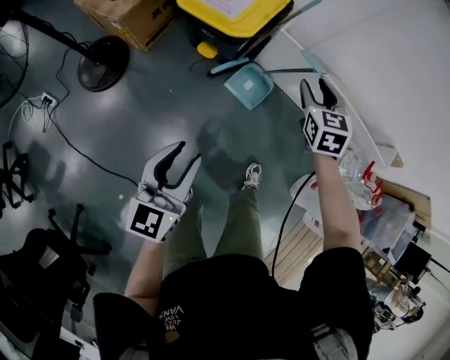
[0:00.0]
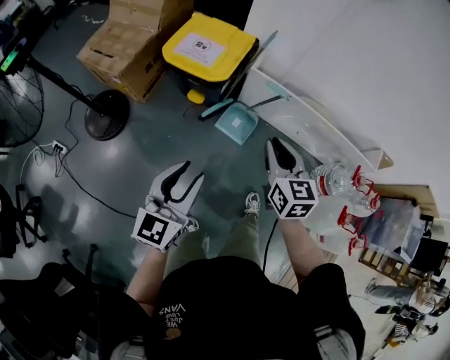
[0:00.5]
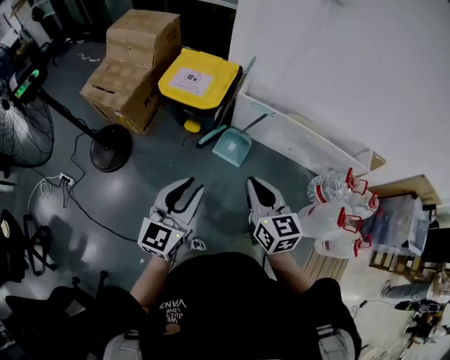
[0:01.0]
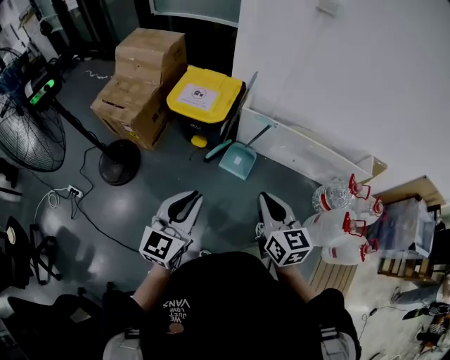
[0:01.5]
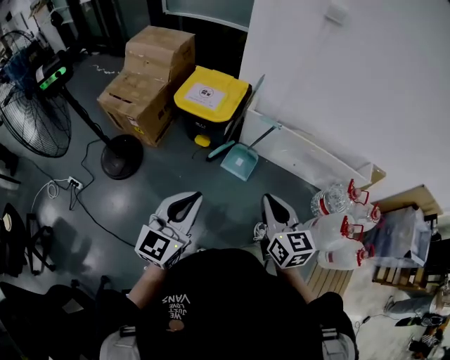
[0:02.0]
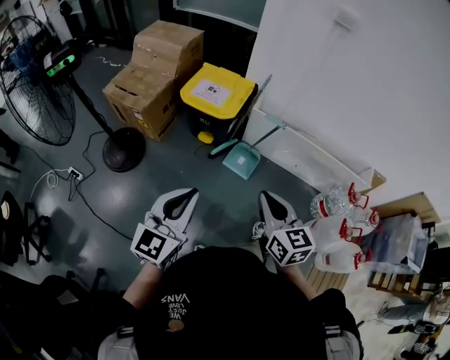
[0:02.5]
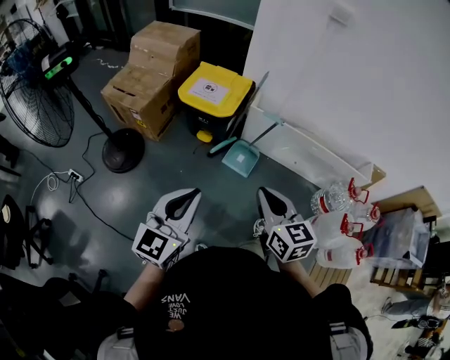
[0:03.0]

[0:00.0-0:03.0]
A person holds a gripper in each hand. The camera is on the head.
0:00.0 to 0:01.5: The left gripper goes some 15 cm upward, while the right gripper heads backward and upward, covering roughly 30 cm, changes its angle by some 30 degrees, and closes its fingers.
0:01.5 to 0:03.0: The right gripper ends up some 5 cm from where it was; the left gripper moves backward, about 5 cm.

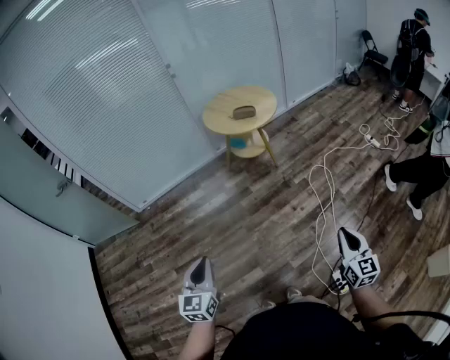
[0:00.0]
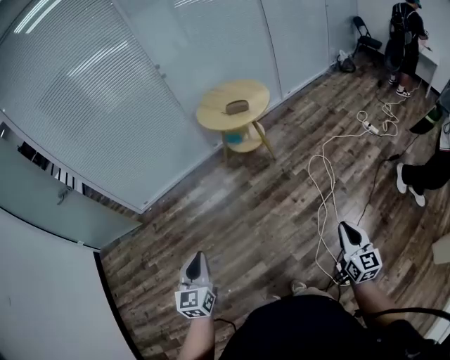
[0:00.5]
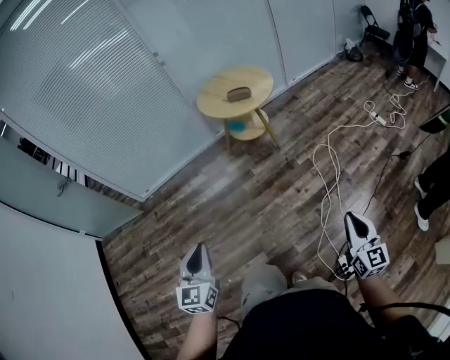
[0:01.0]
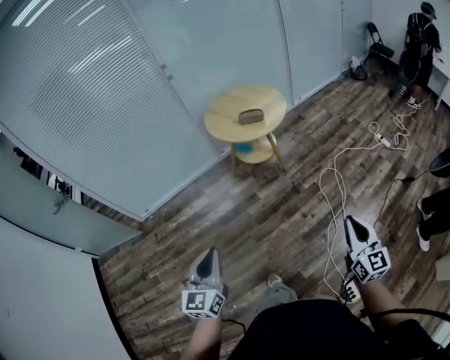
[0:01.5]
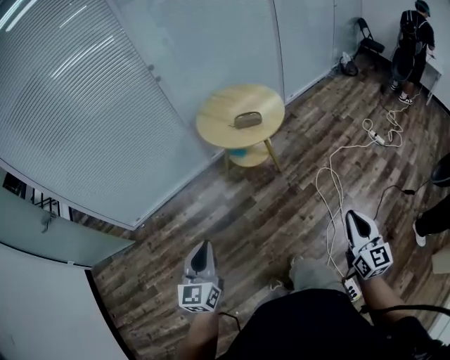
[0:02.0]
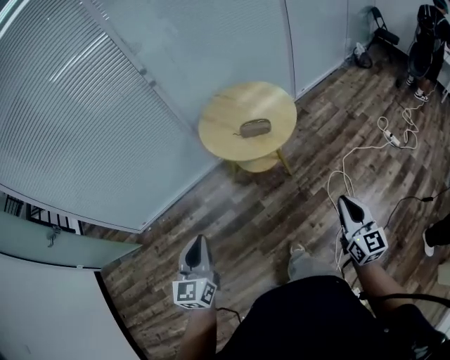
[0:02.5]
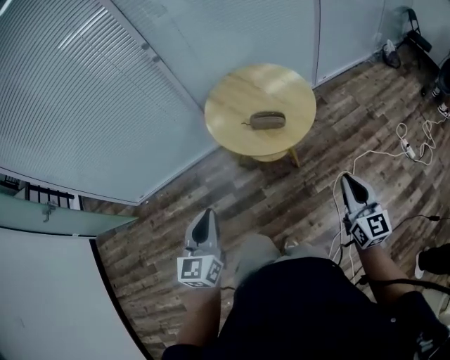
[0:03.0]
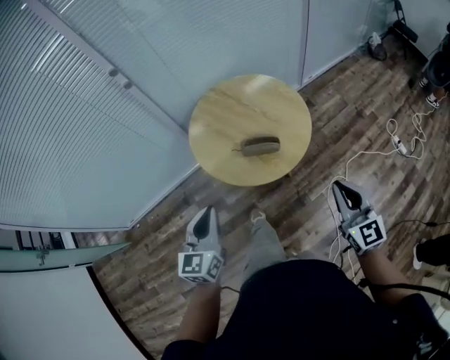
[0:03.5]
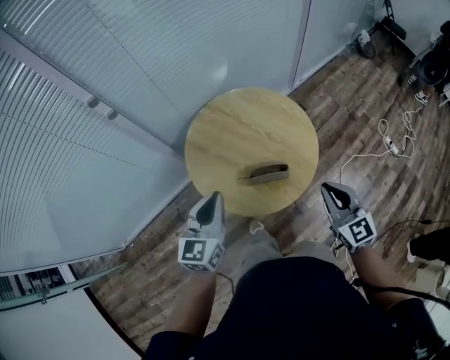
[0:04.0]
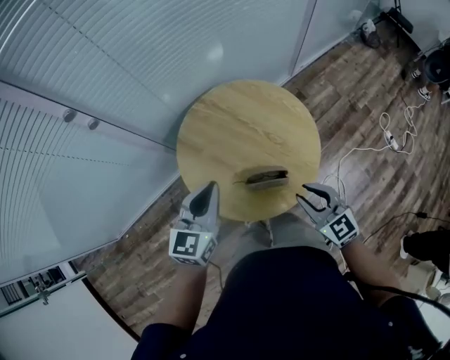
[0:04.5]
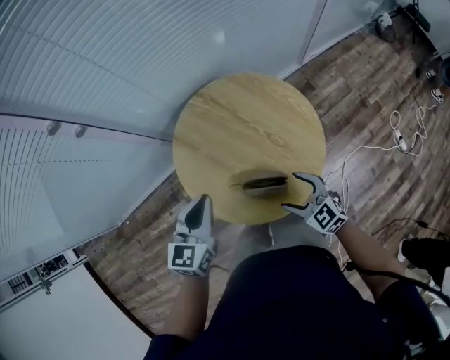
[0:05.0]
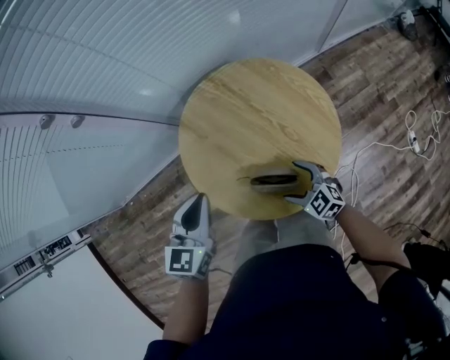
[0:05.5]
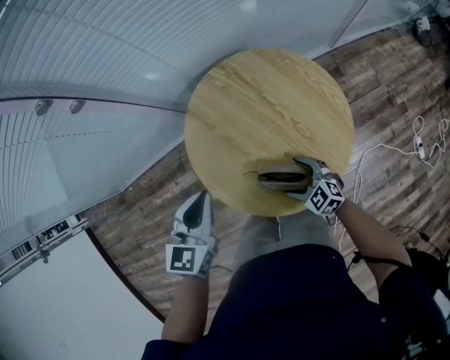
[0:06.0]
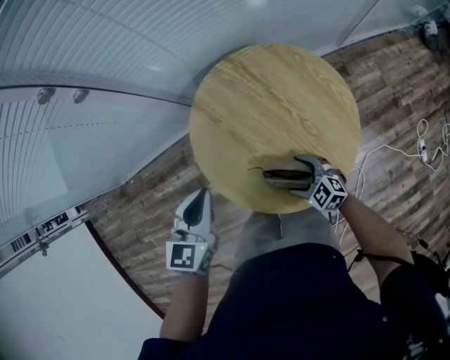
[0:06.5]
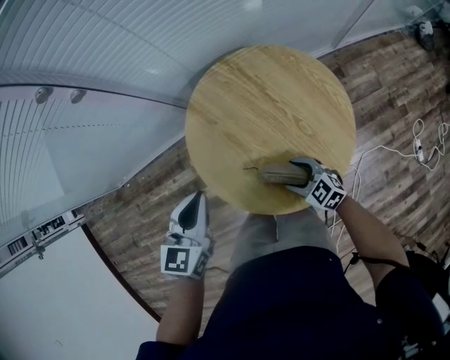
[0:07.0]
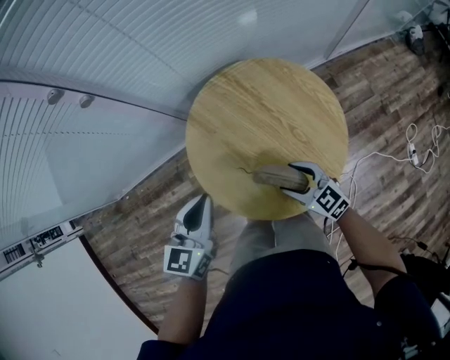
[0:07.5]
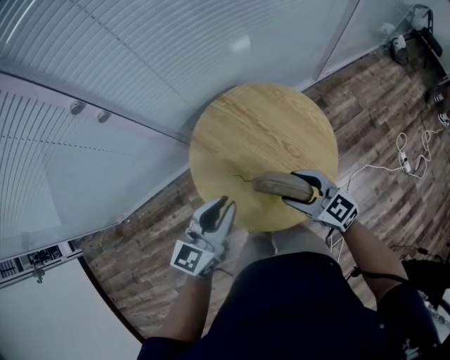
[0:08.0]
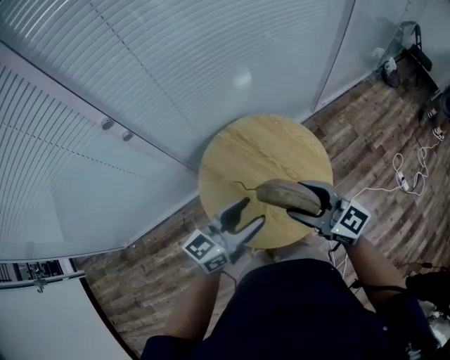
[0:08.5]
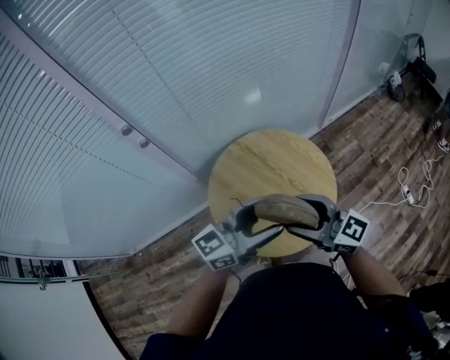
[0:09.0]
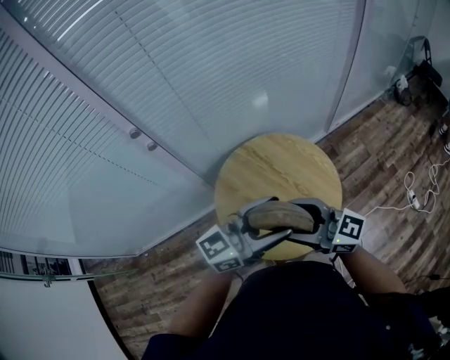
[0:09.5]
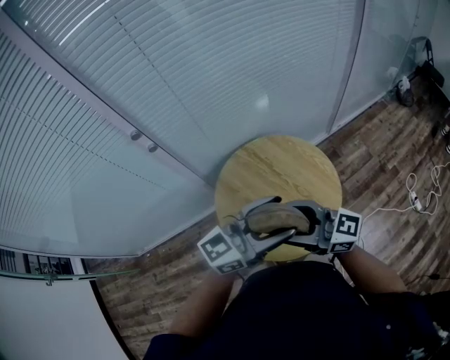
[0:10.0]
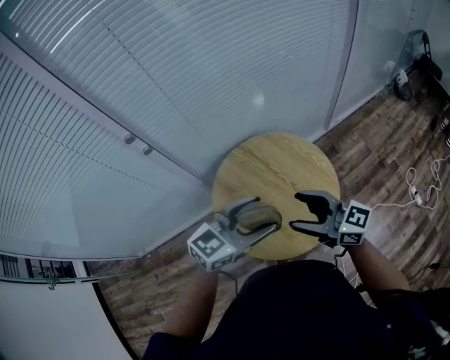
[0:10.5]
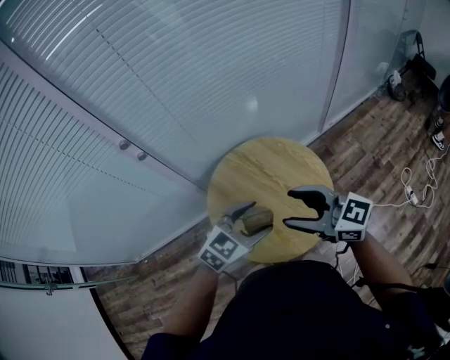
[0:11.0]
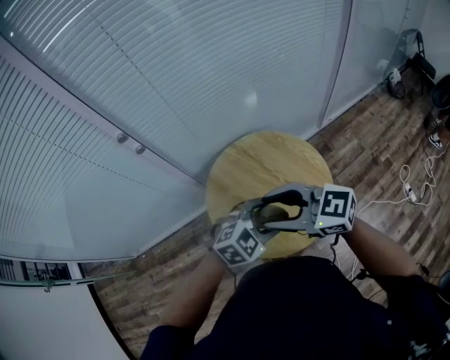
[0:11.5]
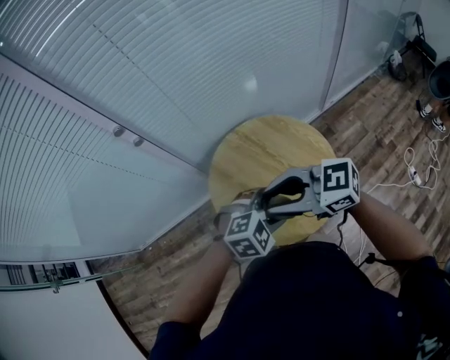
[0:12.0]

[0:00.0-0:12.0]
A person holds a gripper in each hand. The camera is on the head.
0:00.0 to 0:02.0: The grippers both shift forward by about 25 cm.
0:02.0 to 0:04.0: Both grippers are carried forward, some 60 cm. The right gripper changes its angle by about 20 degrees.
0:04.0 to 0:06.0: The left gripper ends up roughly 10 cm from where it was, and turns by some 20 degrees, while the right gripper shifts approximately 25 cm downward, changes its angle by roughly 50 degrees, and opens.
0:06.0 to 0:08.0: The right gripper goes some 20 cm upward, changes its angle by about 20 degrees, and closes its fingers. Meanwhile the left gripper moves about 5 cm, and turns by about 30 degrees.
0:08.0 to 0:10.0: The two grippers go about 15 cm upward. The right gripper angles its fingers upward, by roughly 40 degrees. Meanwhile the left gripper rotates roughly 30 degrees, and opens.
0:10.0 to 0:12.0: The right gripper turns by approximately 30 degrees; the left gripper heads downward, covering some 15 cm, and tilts its fingers approximately 60 degrees downward.

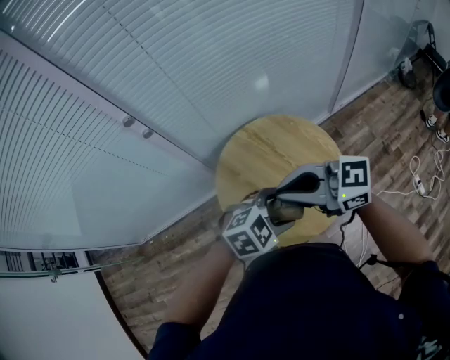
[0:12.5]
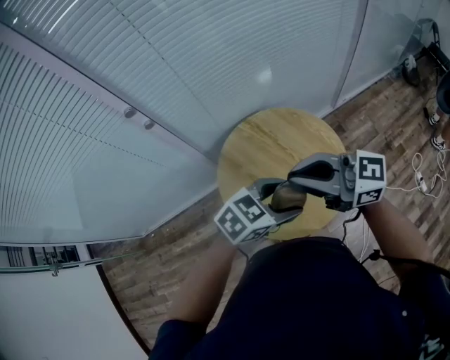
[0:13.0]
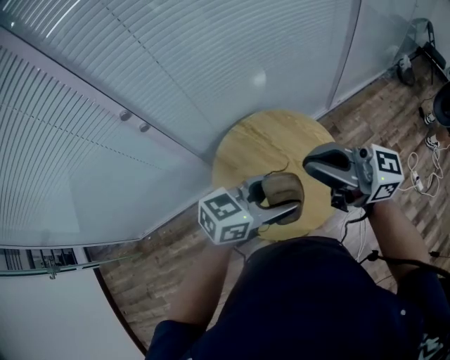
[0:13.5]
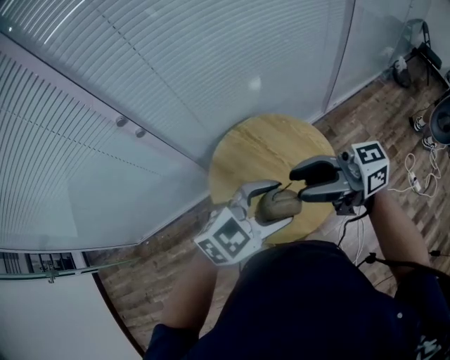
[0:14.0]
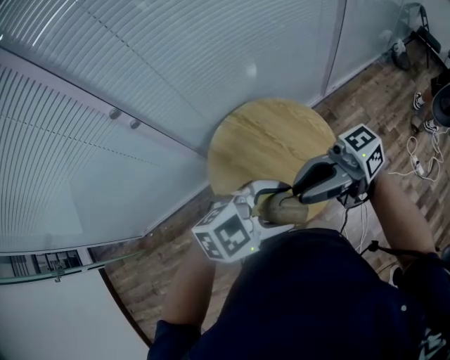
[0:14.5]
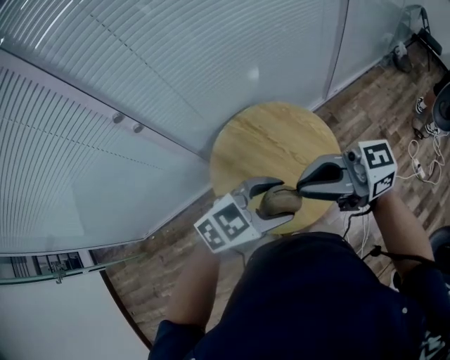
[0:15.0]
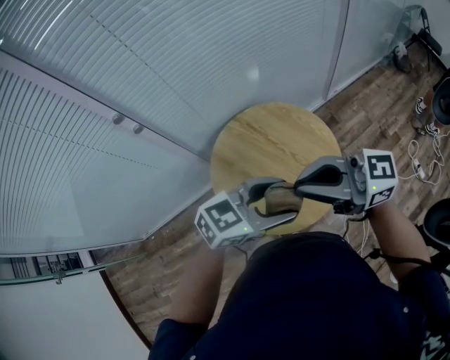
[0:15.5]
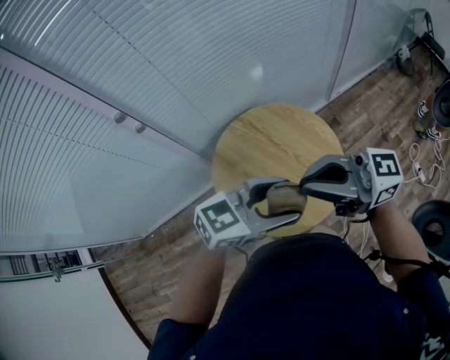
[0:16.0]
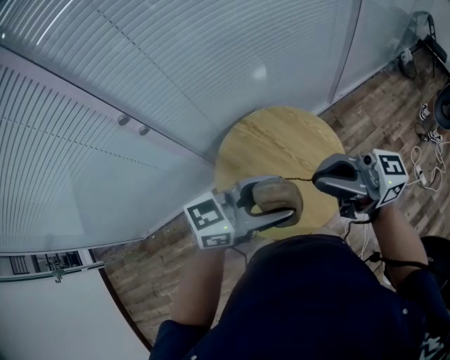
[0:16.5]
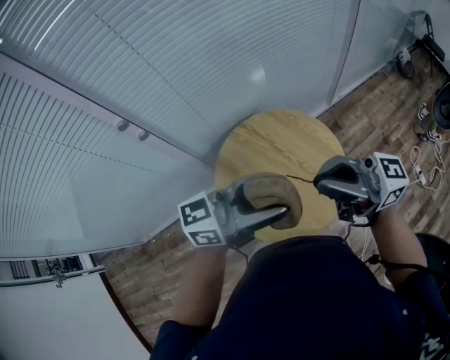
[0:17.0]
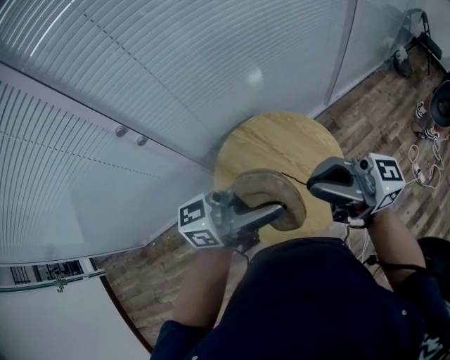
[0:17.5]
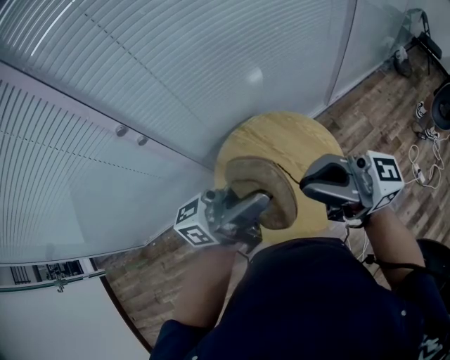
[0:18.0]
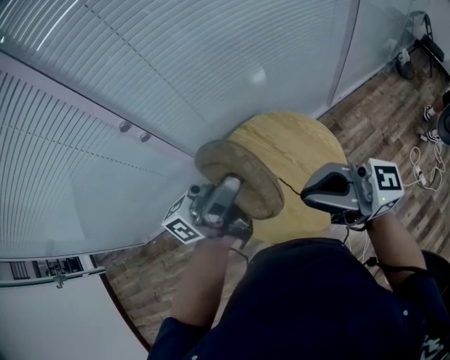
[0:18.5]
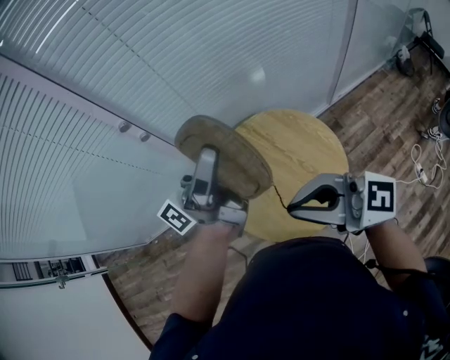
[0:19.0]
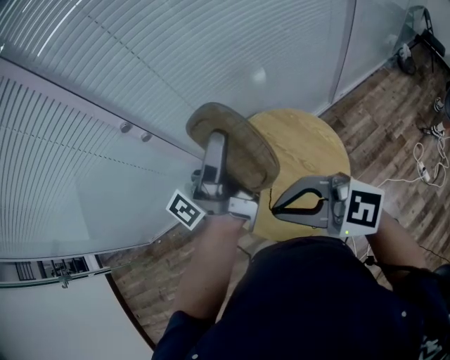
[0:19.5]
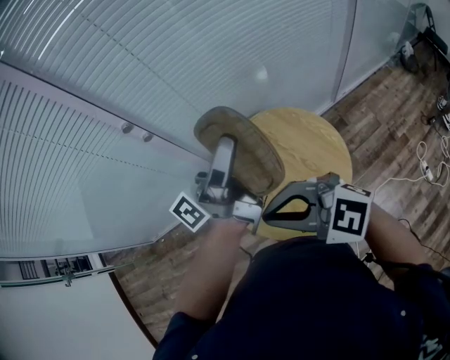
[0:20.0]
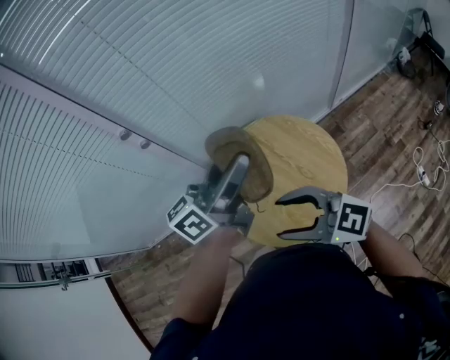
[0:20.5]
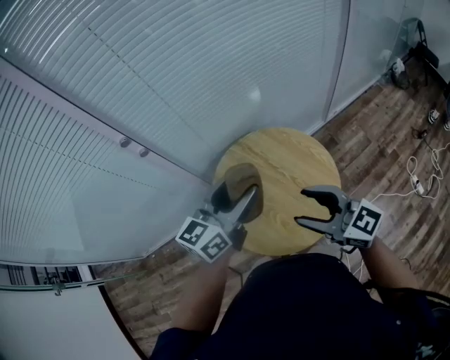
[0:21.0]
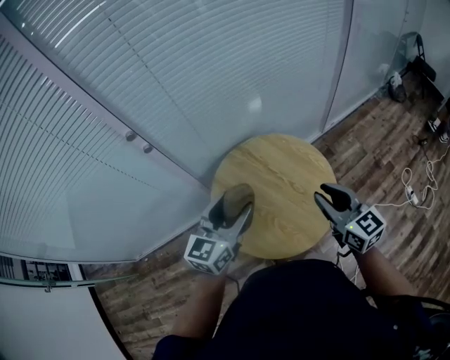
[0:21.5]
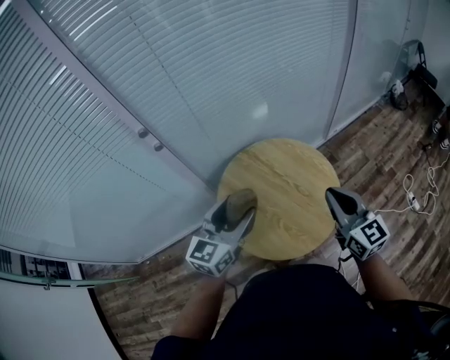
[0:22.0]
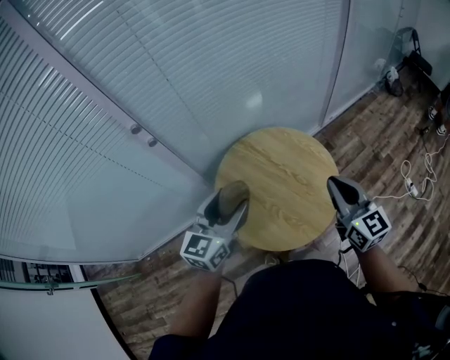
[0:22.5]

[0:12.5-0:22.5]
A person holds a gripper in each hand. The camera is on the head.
0:12.5 to 0:14.5: The left gripper shifts approximately 10 cm upward, while the right gripper goes upward and returns, about 10 cm each way, and changes its angle by roughly 30 degrees.
0:14.5 to 0:16.5: The left gripper ends up roughly 10 cm from where it was, and swivels roughly 40 degrees; the right gripper shifts by about 5 cm, and turns by about 30 degrees.
0:16.5 to 0:18.5: The left gripper goes approximately 10 cm upward, and tips its fingers upward by roughly 40 degrees.
0:18.5 to 0:20.5: The right gripper travels downward by roughly 10 cm, tilts its fingers approximately 30 degrees downward, and opens up. Meanwhile the left gripper ends up some 5 cm from where it was, and changes its angle by about 30 degrees.
0:20.5 to 0:22.5: The left gripper goes approximately 20 cm downward, backward and to the left, and turns by roughly 50 degrees; the right gripper travels to the right by approximately 15 cm, turns by about 60 degrees, and closes its fingers.

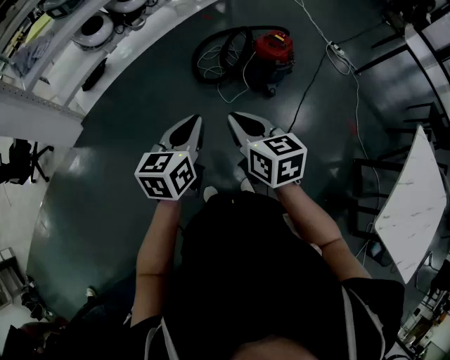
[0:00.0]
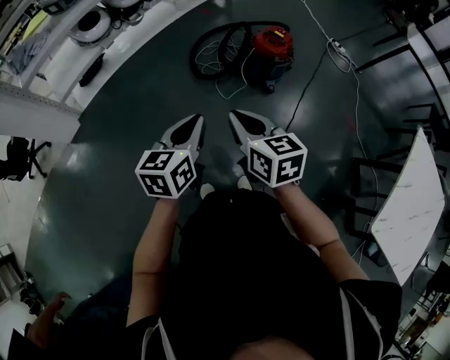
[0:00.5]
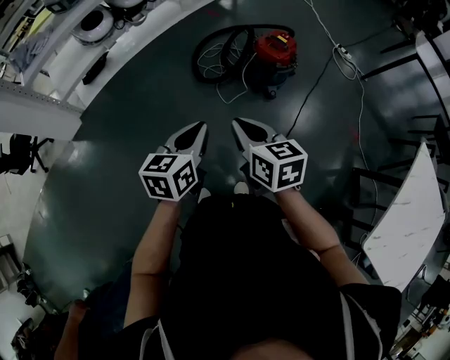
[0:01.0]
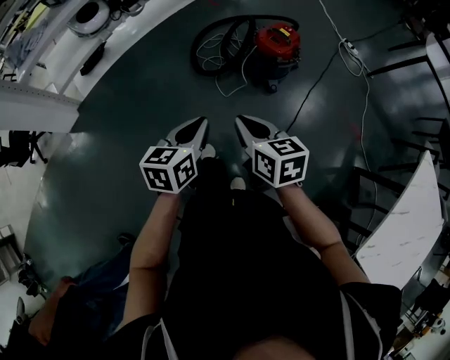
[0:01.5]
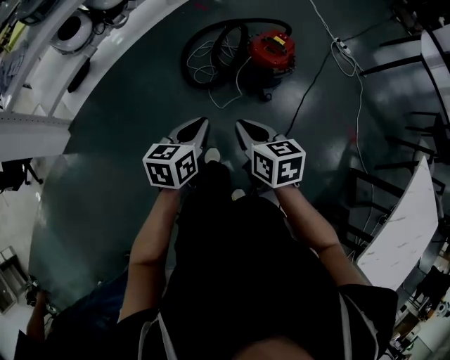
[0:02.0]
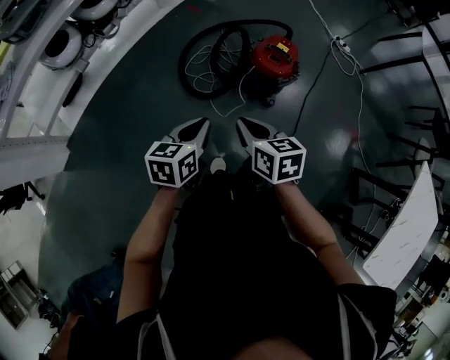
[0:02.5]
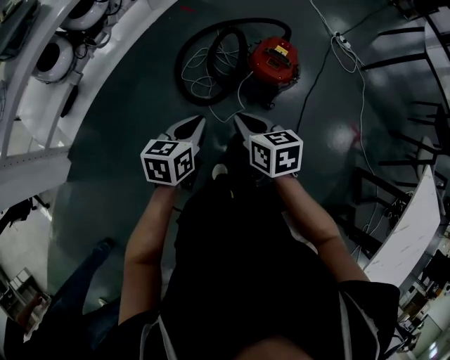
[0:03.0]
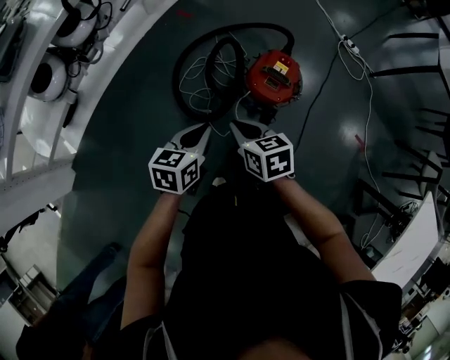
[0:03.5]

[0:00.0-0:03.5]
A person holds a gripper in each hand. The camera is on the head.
0:00.0 to 0:02.0: Both grippers travel together forward, downward and to the right, roughly 20 cm.
0:02.0 to 0:03.5: Both grippers travel together forward, about 30 cm.
